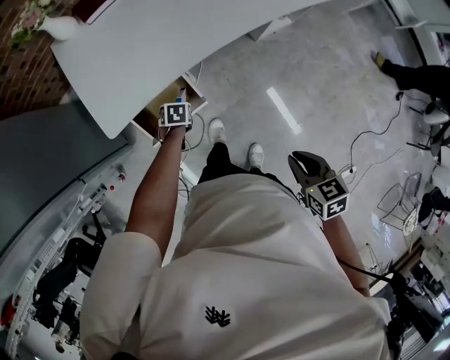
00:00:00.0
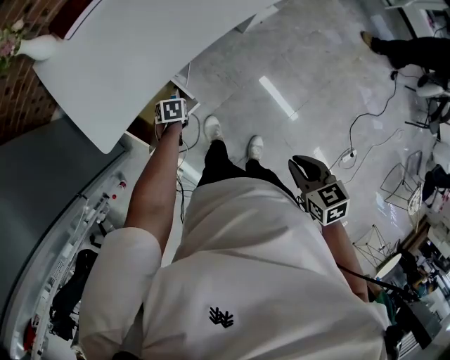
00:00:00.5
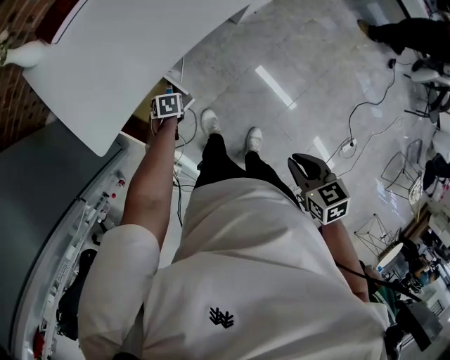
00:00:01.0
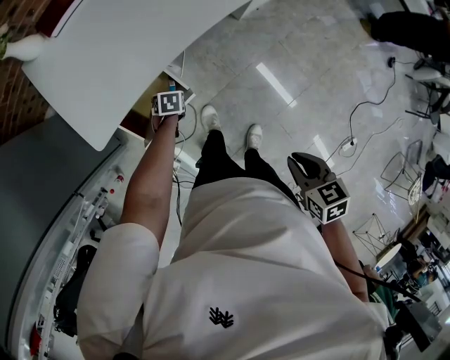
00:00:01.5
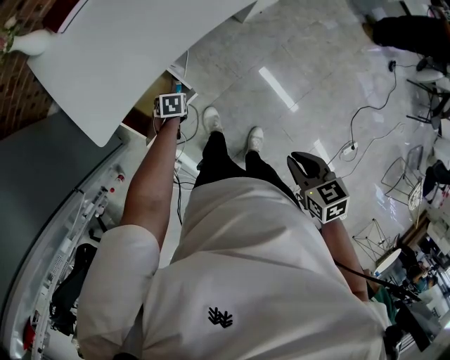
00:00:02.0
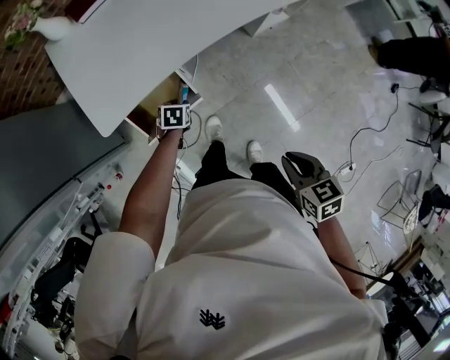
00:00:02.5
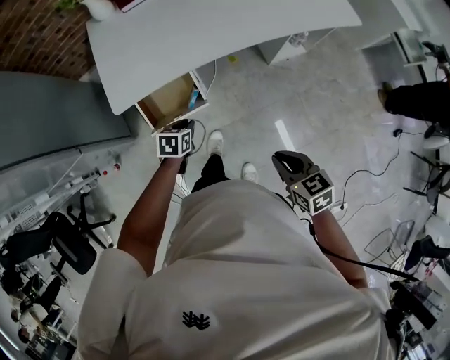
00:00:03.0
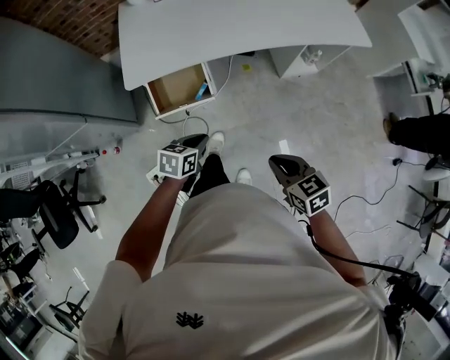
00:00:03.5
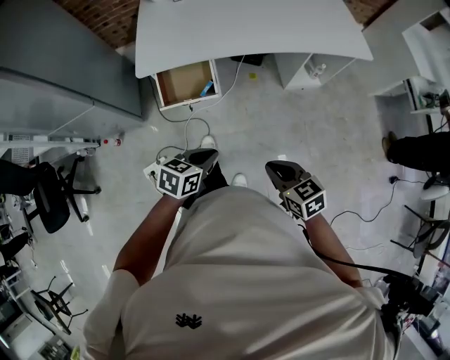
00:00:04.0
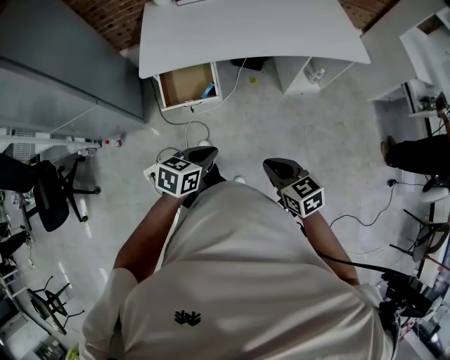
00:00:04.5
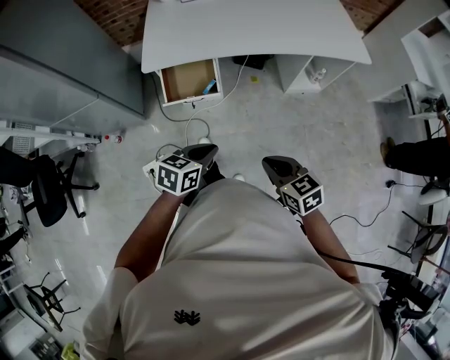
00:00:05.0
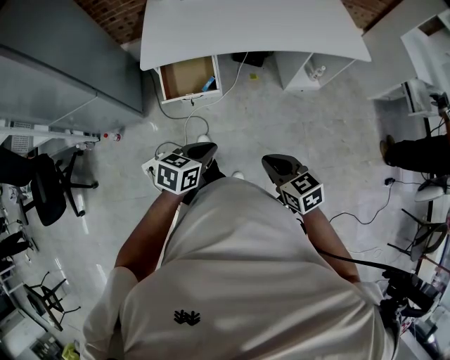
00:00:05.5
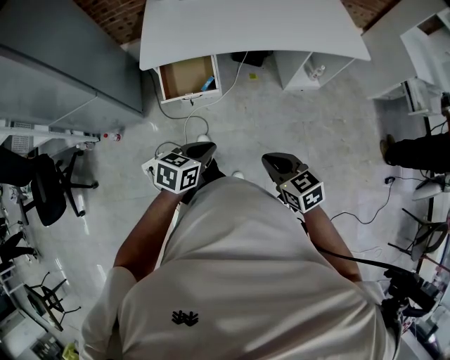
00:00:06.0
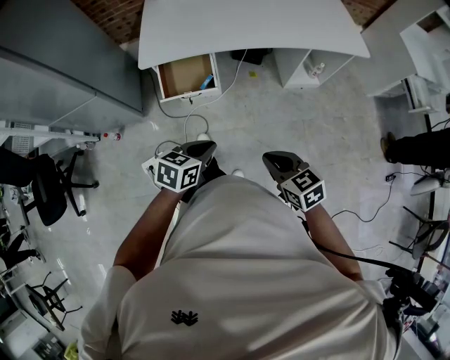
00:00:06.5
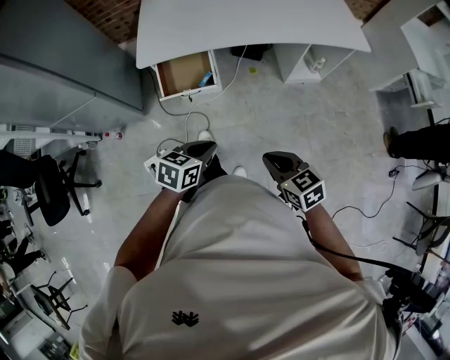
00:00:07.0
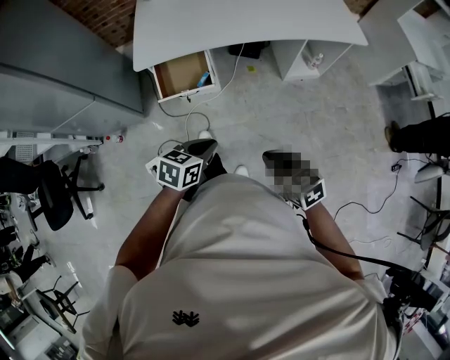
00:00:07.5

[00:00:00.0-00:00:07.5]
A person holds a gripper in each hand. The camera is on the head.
00:00:00.0 to 00:00:02.0: The left gripper changes place by some 5 cm.
00:00:02.0 to 00:00:04.0: The left gripper moves about 50 cm, angles its fingers upward, by some 40 degrees, and closes up. Meanwhile the right gripper moves roughly 15 cm, and swivels some 40 degrees.
00:00:04.0 to 00:00:07.5: The grippers stay close to where they were, moving slightly.

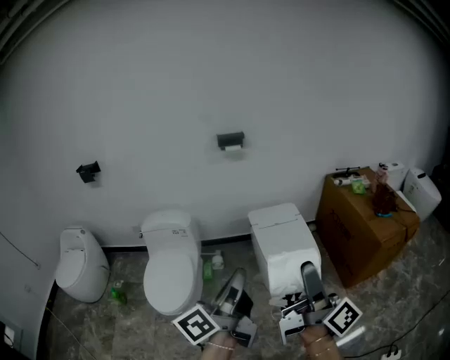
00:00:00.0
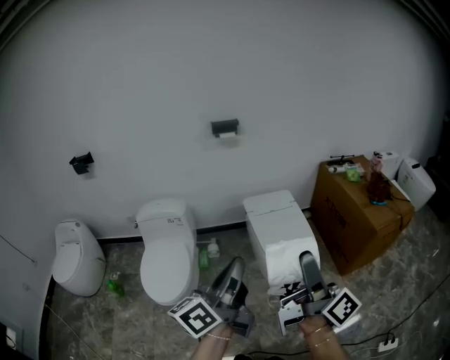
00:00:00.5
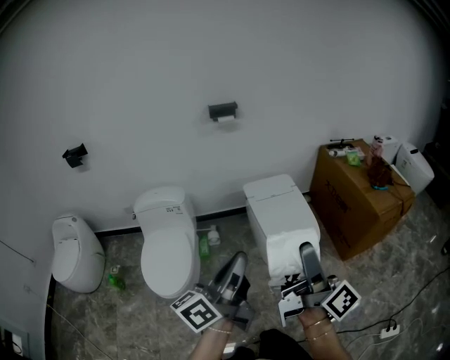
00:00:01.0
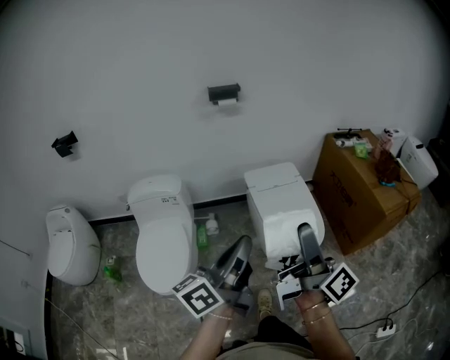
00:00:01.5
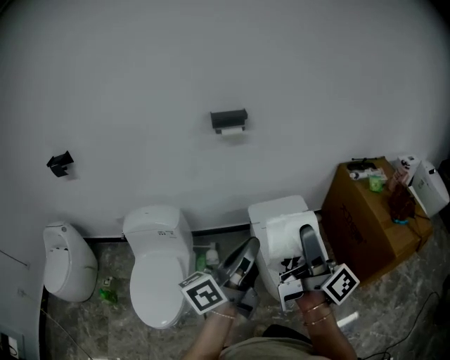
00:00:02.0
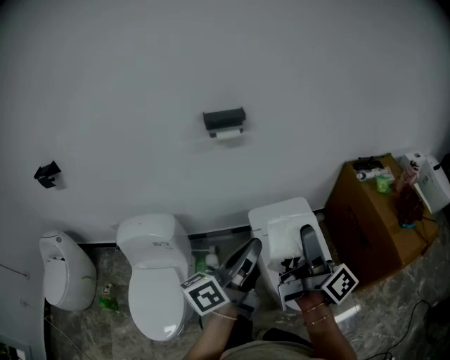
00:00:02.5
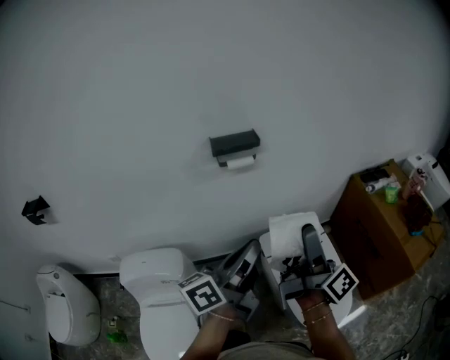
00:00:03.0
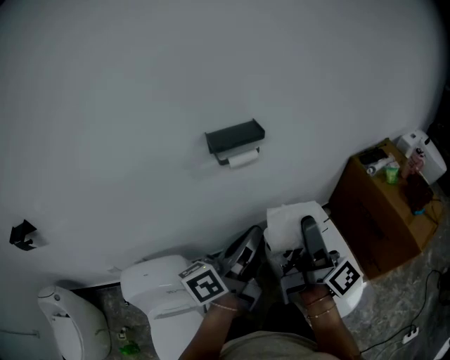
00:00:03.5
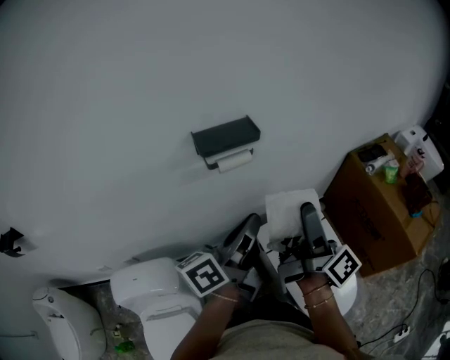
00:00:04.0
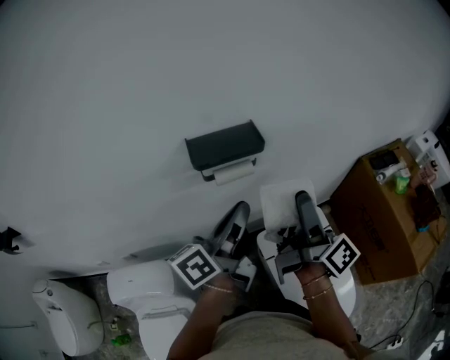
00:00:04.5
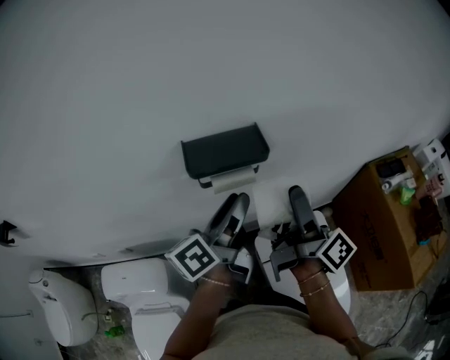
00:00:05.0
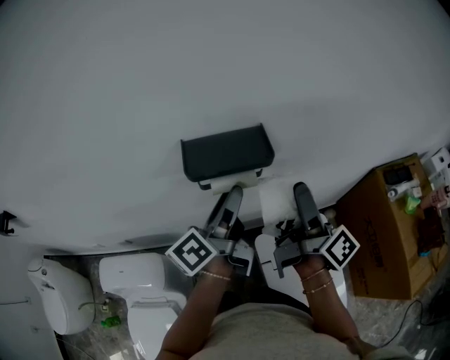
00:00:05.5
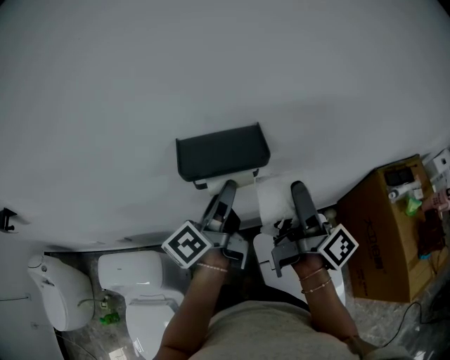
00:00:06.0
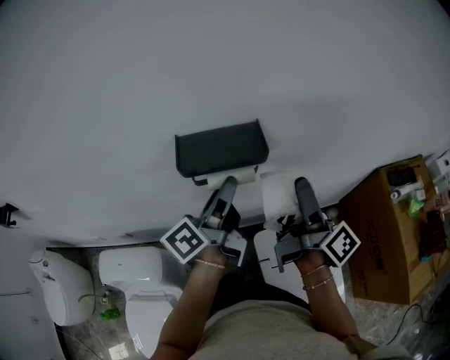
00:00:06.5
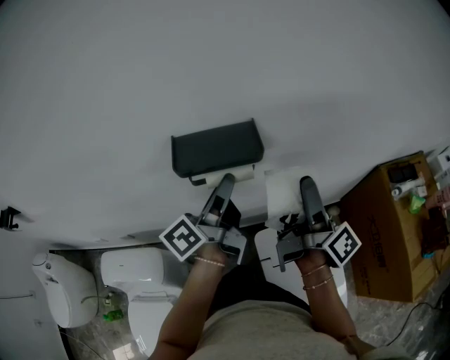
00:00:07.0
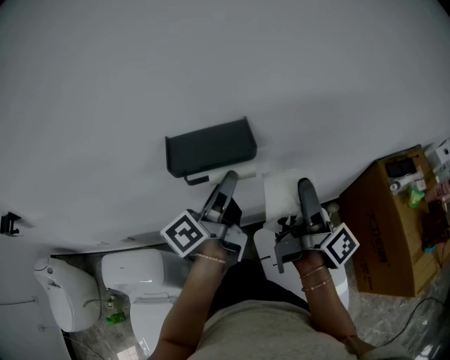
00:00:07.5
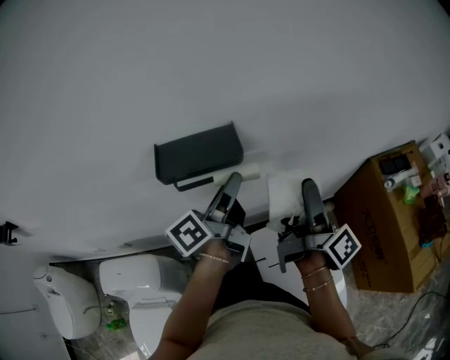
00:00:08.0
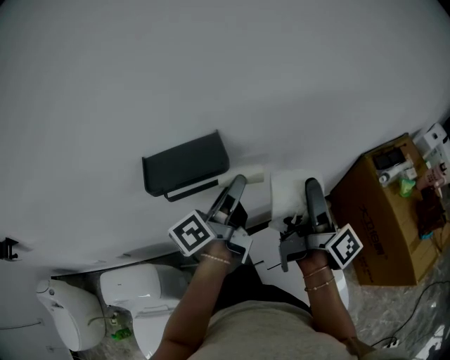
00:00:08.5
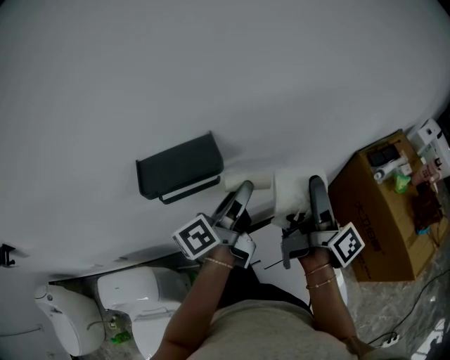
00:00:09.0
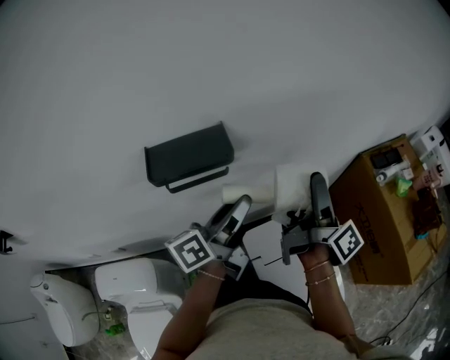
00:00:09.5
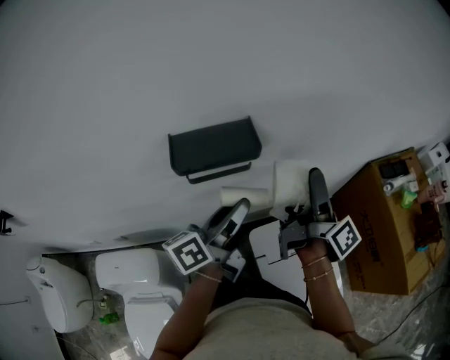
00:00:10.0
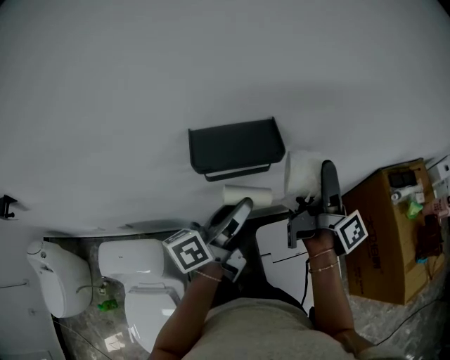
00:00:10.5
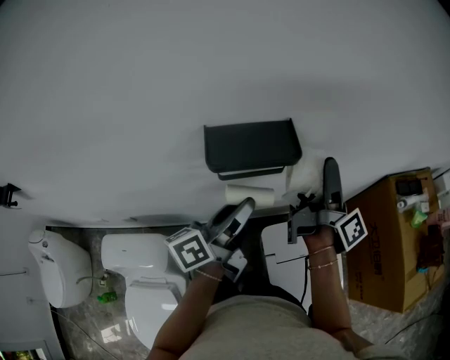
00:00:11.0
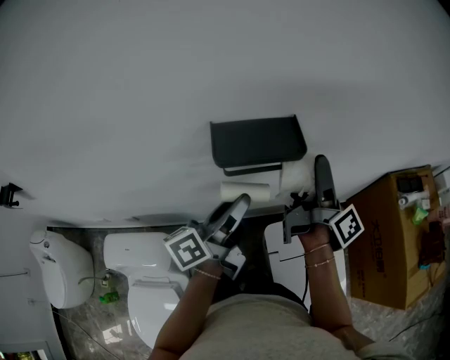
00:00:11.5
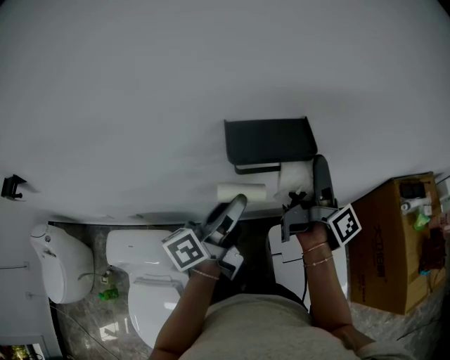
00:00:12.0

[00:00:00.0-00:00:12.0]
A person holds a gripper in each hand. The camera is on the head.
00:00:00.0 to 00:00:02.0: The left gripper moves some 35 cm.
00:00:02.0 to 00:00:04.0: The left gripper changes place by roughly 50 cm.
00:00:04.0 to 00:00:06.0: The left gripper shifts by about 20 cm, changes its angle by roughly 30 degrees, and opens.
00:00:06.0 to 00:00:08.0: The left gripper changes place by approximately 5 cm.
00:00:08.0 to 00:00:10.0: The left gripper changes place by about 5 cm.
00:00:10.0 to 00:00:12.0: The left gripper ends up approximately 10 cm from where it was.

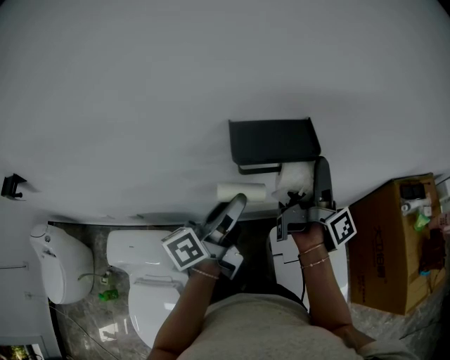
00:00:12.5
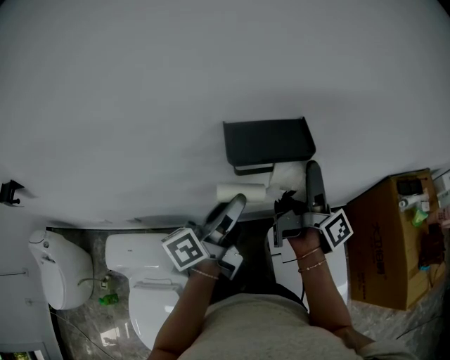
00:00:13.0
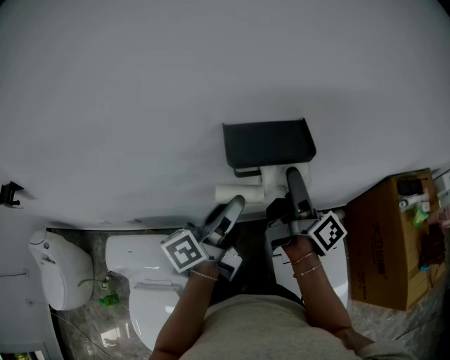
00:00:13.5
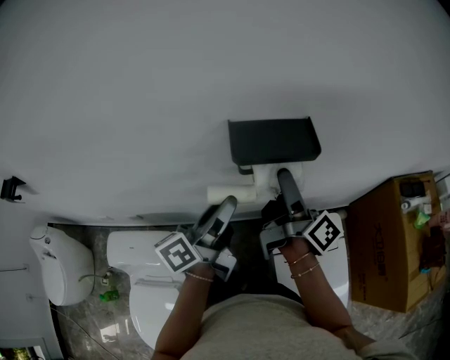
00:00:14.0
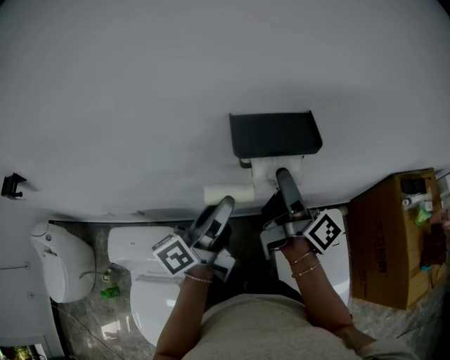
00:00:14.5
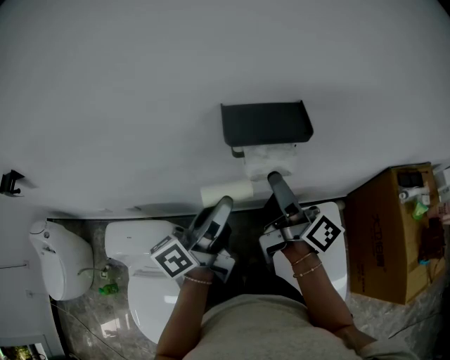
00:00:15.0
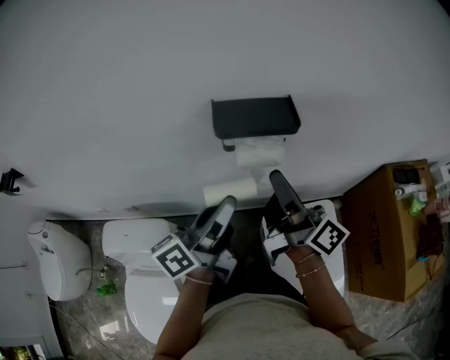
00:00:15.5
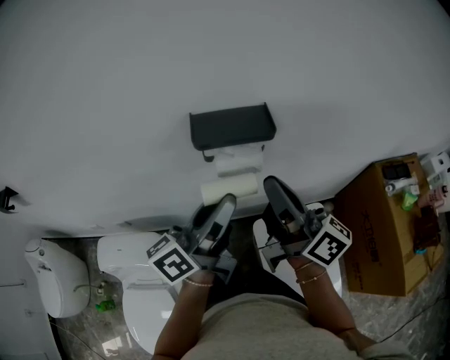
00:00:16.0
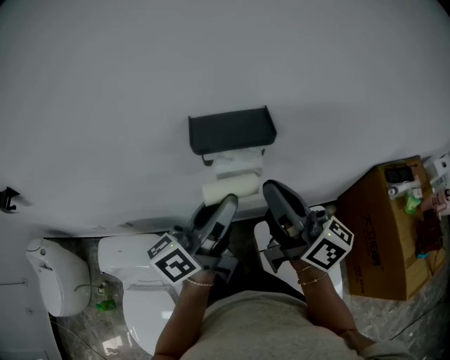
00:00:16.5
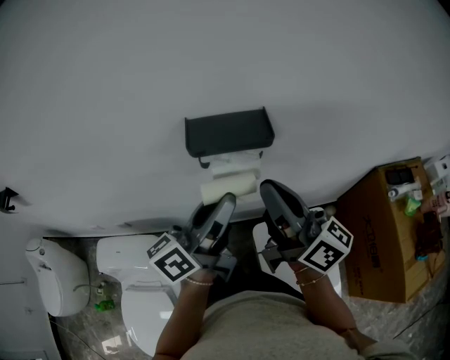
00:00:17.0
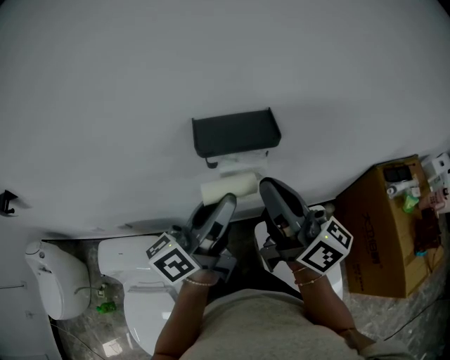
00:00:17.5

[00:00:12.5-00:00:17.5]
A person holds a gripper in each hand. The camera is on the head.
00:00:15.0 to 00:00:17.5: The left gripper is displaced upward by approximately 5 cm.

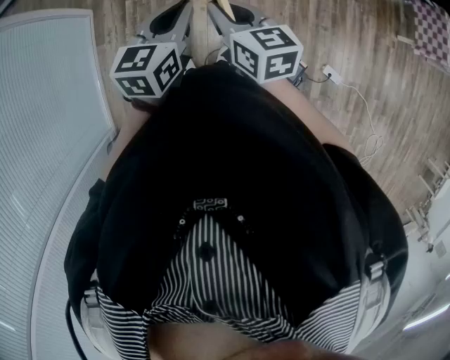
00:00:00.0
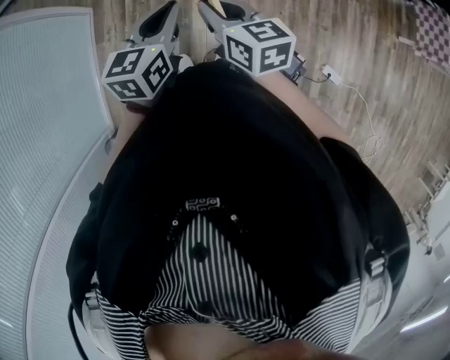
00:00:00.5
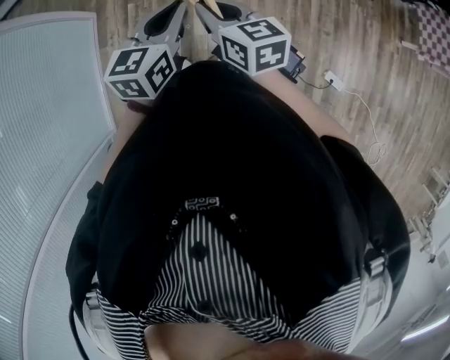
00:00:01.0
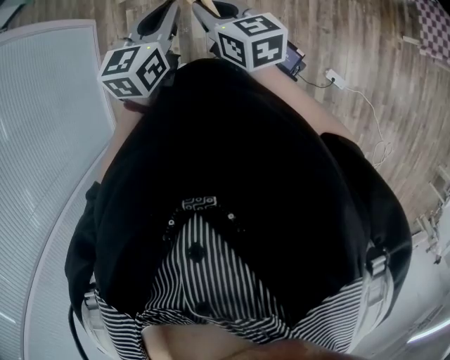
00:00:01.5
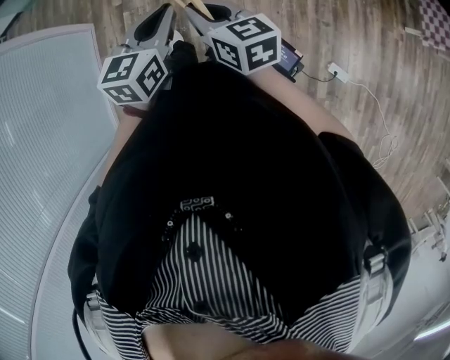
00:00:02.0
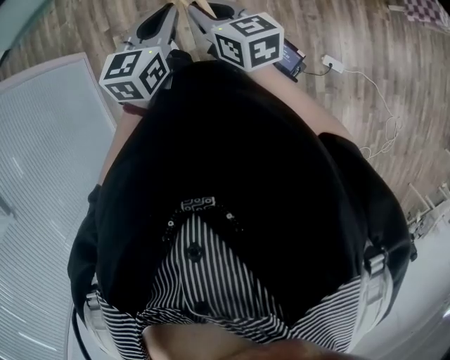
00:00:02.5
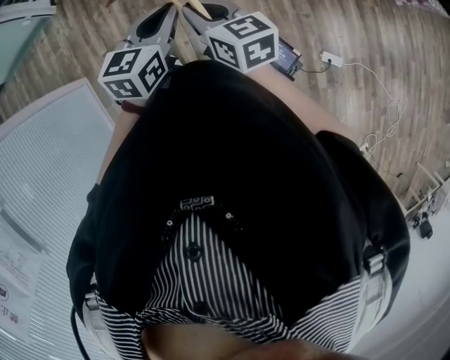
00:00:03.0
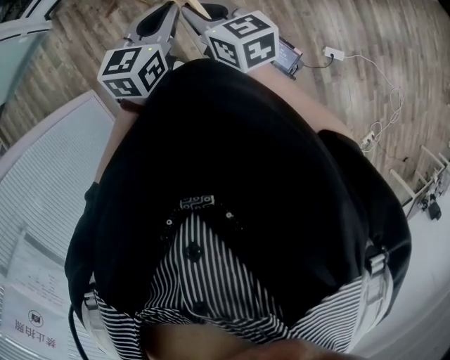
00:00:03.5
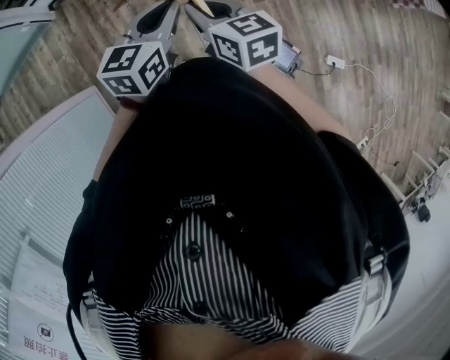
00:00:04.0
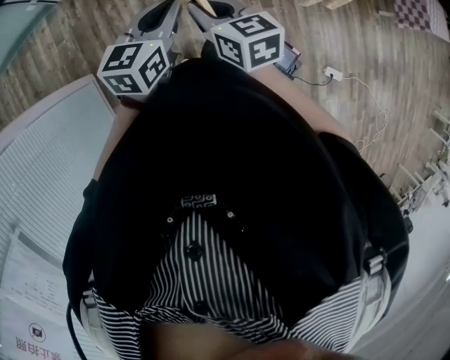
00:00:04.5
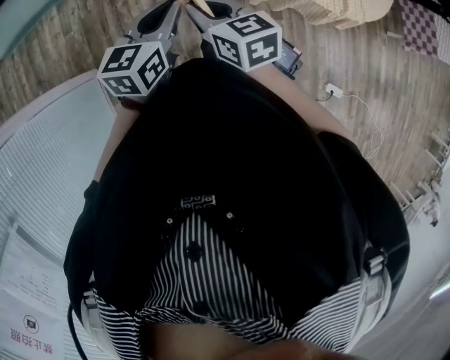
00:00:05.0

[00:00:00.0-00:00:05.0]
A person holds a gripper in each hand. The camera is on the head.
00:00:00.0 to 00:00:02.5: The right gripper is displaced to the right and downward by approximately 15 cm; the left gripper goes approximately 15 cm to the right.
00:00:02.5 to 00:00:05.0: The pair of grippers is taken forward and to the left, roughly 50 cm.
